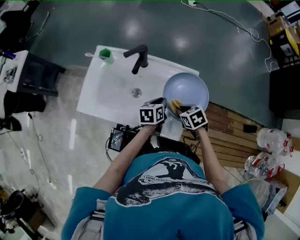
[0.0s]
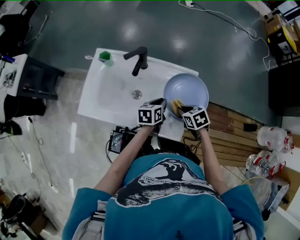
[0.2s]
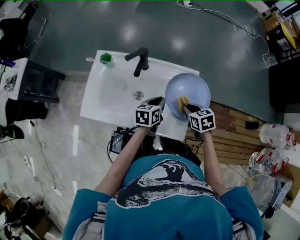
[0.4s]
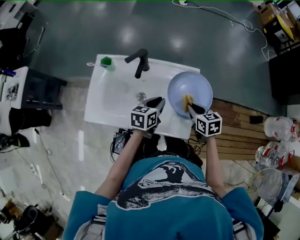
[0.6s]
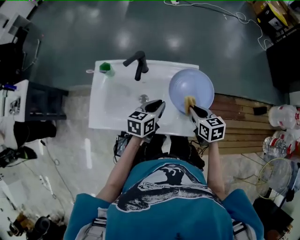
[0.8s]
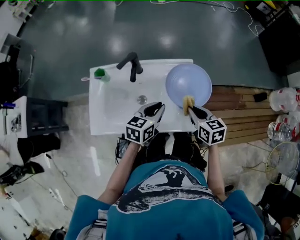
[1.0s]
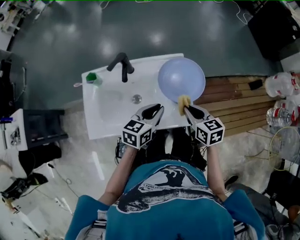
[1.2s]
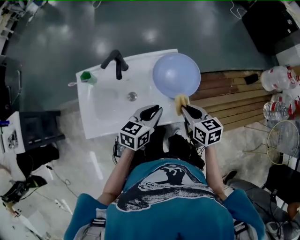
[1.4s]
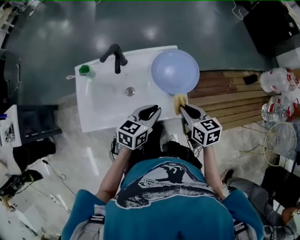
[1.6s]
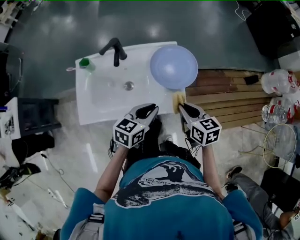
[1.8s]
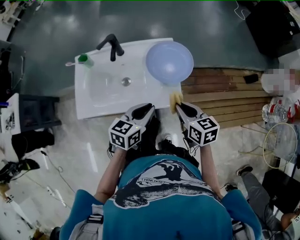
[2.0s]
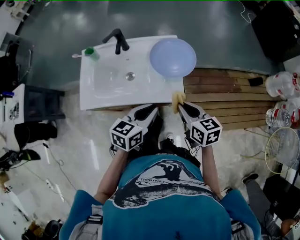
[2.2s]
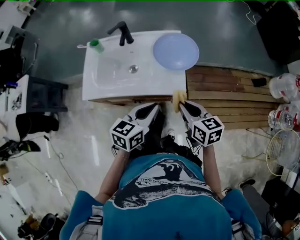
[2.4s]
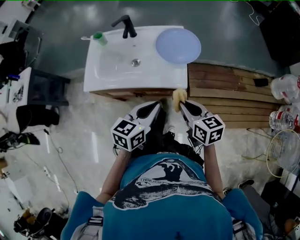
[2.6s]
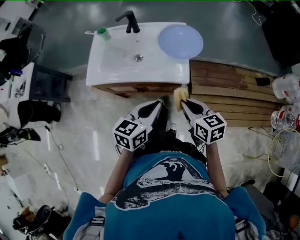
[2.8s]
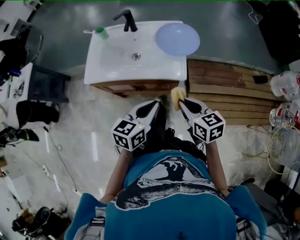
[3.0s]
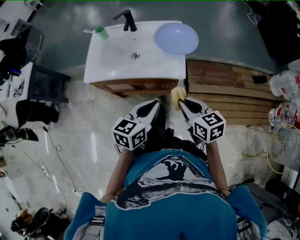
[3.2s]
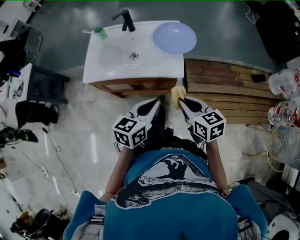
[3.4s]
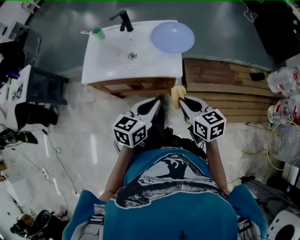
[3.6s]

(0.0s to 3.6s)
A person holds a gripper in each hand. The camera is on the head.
0.0s - 1.8s: The left gripper changes place by roughly 20 cm, and changes its angle by approximately 40 degrees. Meanwhile the right gripper ends up approximately 15 cm from where it was, and changes its angle by roughly 50 degrees.
1.8s - 3.6s: Both grippers travel together backward, approximately 20 cm.

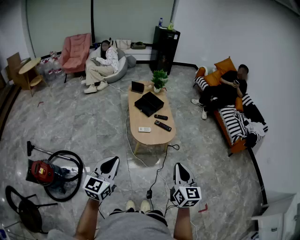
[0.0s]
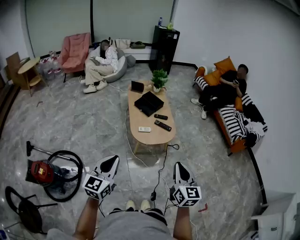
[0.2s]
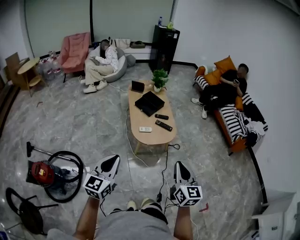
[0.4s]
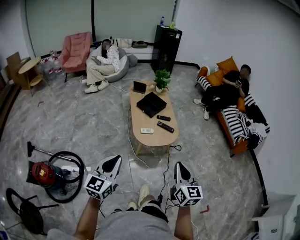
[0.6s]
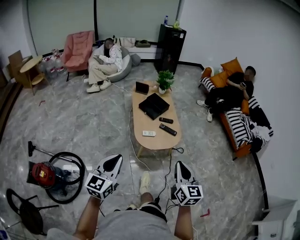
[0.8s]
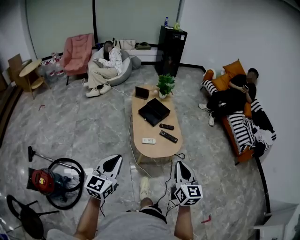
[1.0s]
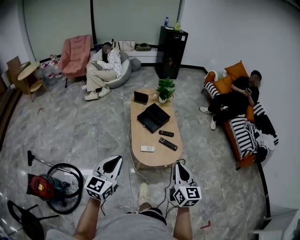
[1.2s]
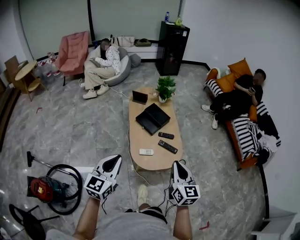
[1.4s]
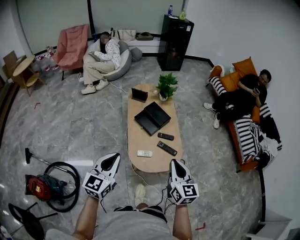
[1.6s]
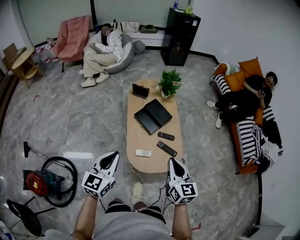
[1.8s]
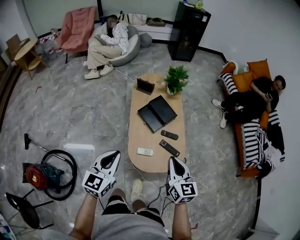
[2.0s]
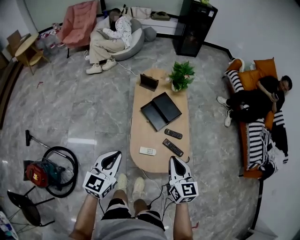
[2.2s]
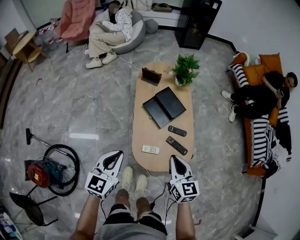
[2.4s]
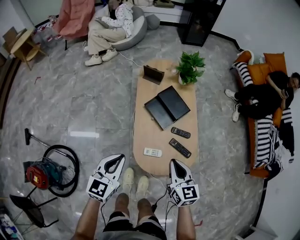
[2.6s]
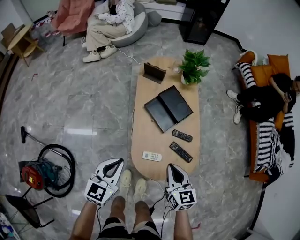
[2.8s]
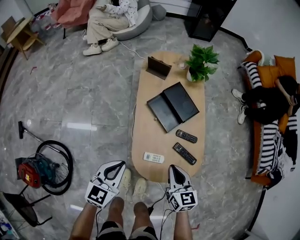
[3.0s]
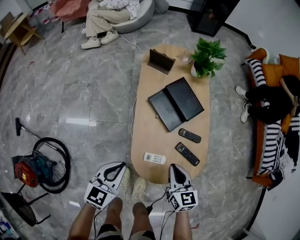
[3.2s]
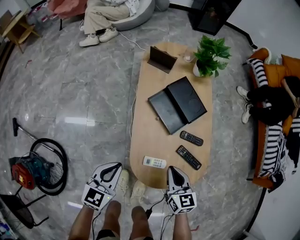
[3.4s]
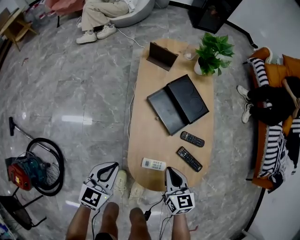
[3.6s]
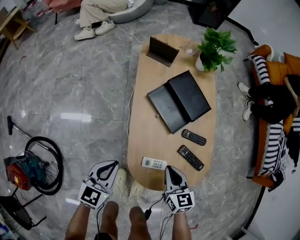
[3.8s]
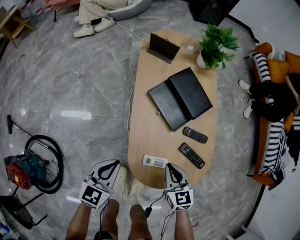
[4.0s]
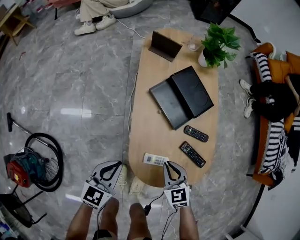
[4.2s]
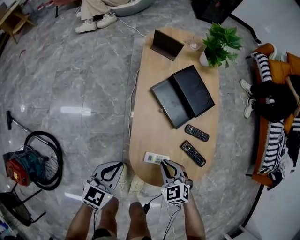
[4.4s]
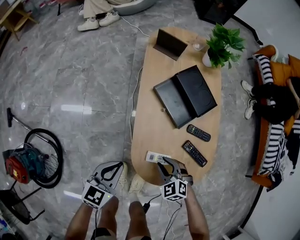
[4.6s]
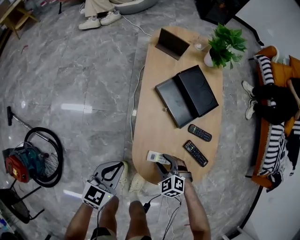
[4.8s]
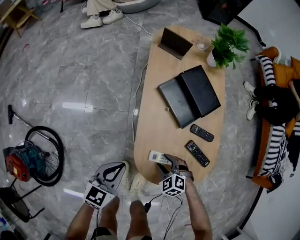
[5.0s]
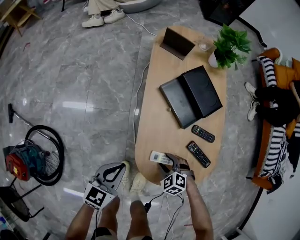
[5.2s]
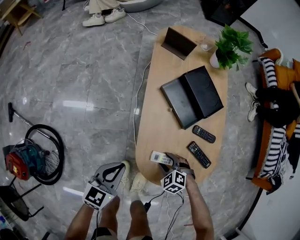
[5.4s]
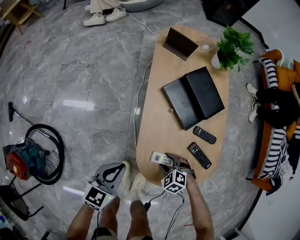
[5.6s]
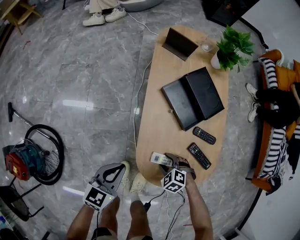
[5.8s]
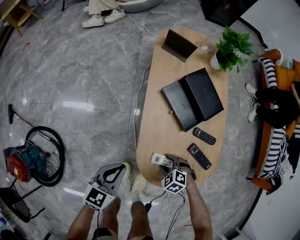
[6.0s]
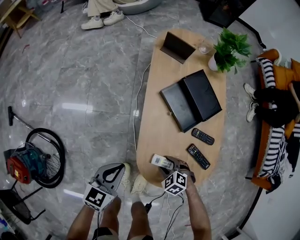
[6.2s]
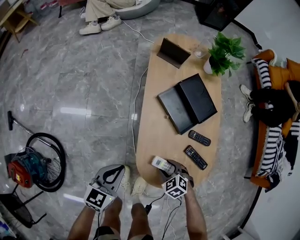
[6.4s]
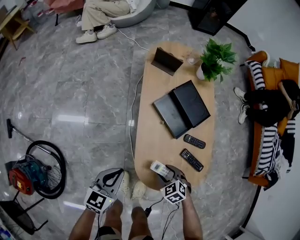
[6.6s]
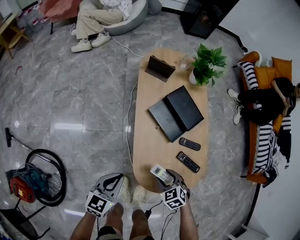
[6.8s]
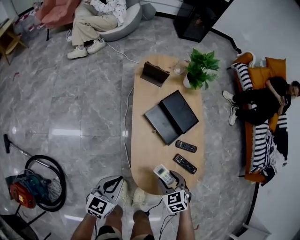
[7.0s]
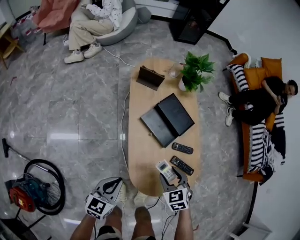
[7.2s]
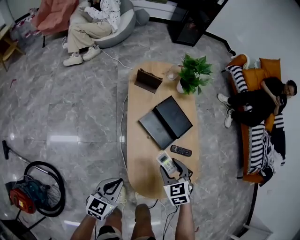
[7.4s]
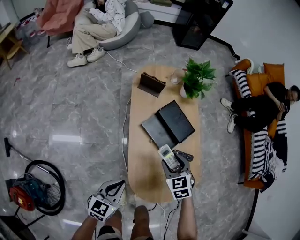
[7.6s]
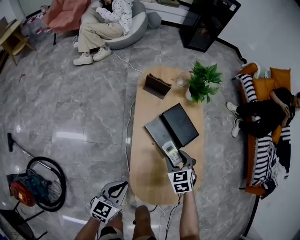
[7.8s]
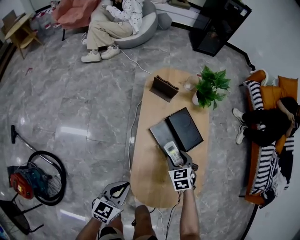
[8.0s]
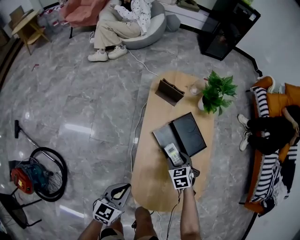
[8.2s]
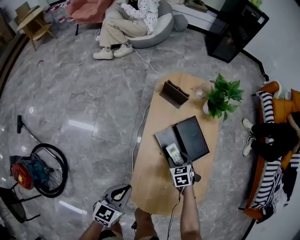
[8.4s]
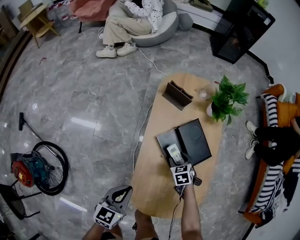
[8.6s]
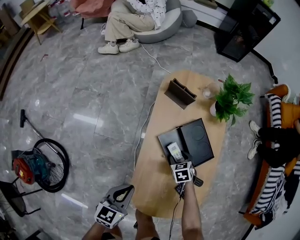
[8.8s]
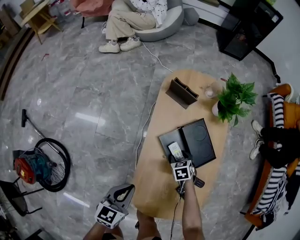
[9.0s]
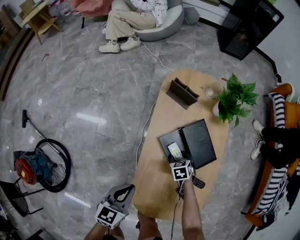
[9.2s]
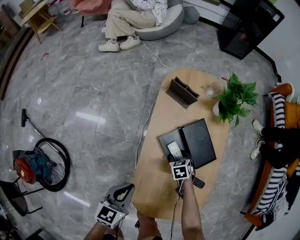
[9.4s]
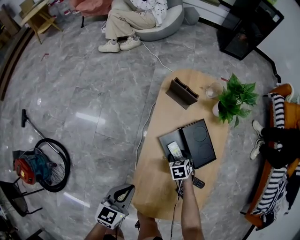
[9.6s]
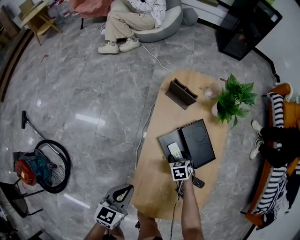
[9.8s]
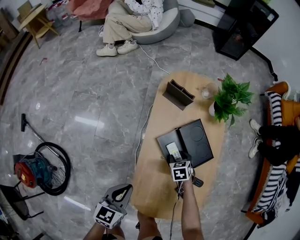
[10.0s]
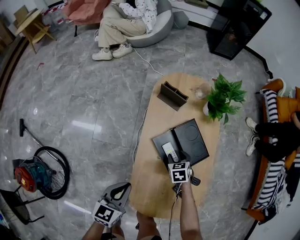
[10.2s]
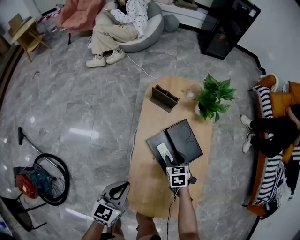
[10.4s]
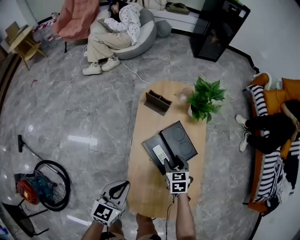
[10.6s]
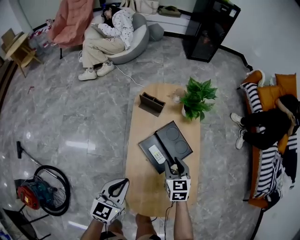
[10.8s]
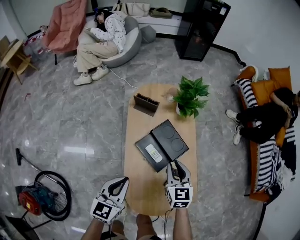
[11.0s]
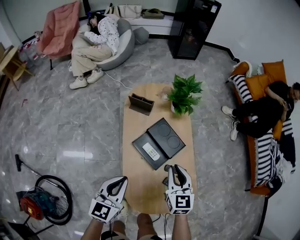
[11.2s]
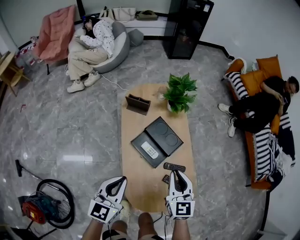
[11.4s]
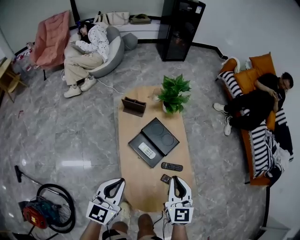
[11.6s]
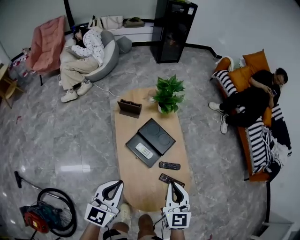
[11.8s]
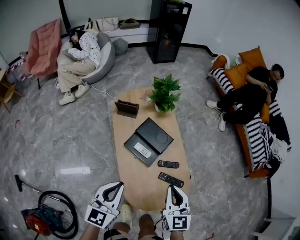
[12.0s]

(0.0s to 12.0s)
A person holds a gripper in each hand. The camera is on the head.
0.0s - 1.6s: Both grippers move forward, some 40 cm.
1.6s - 3.0s: Both grippers move downward and forward, some 30 cm. The right gripper rotates roughly 20 degrees.
3.0s - 4.4s: Both grippers travel together downward, some 15 cm. The right gripper changes its angle by some 40 degrees.
4.4s - 6.0s: The right gripper moves downward, approximately 10 cm, changes its angle by roughly 30 degrees, and opens.
6.0s - 7.6s: The left gripper moves upward, some 10 cm. The right gripper travels upward by roughly 25 cm, and changes its angle by some 50 degrees.
7.6s - 9.0s: The right gripper shifts roughly 25 cm downward and forward, and turns by roughly 20 degrees. The left gripper is displaced forward by some 5 cm, and swivels roughly 20 degrees.
9.0s - 10.4s: The left gripper moves upward, roughly 5 cm; the right gripper goes some 10 cm upward.
10.4s - 12.0s: The right gripper goes some 35 cm upward and backward, angles its fingers upward, by about 40 degrees, and closes its fingers. The left gripper heads upward, covering approximately 15 cm, and rotates some 20 degrees.

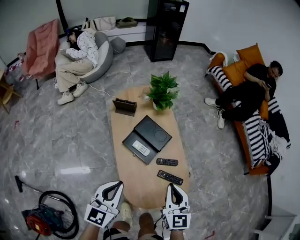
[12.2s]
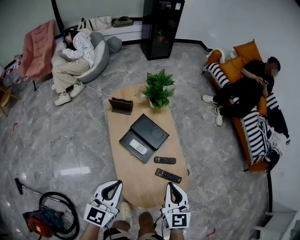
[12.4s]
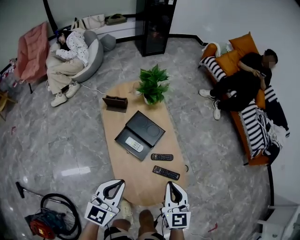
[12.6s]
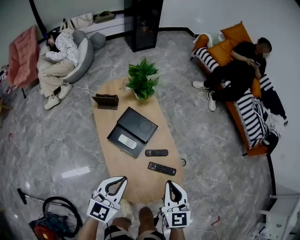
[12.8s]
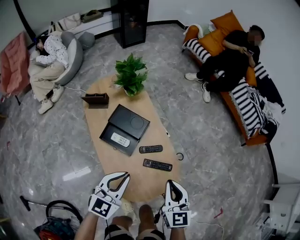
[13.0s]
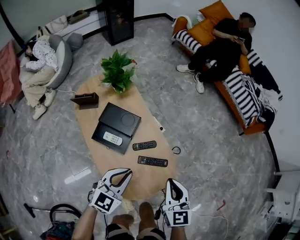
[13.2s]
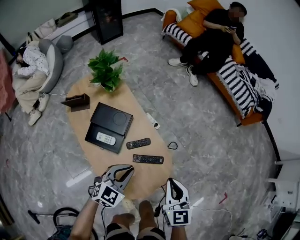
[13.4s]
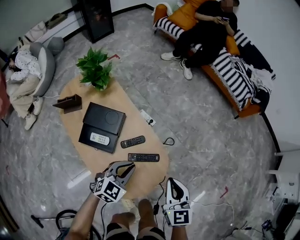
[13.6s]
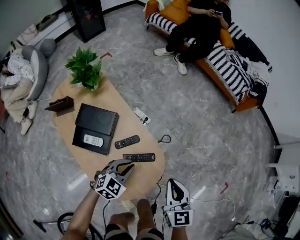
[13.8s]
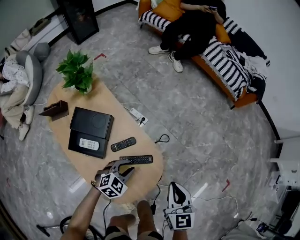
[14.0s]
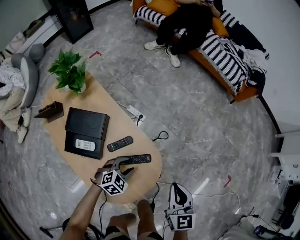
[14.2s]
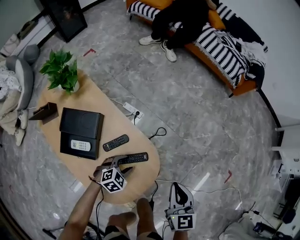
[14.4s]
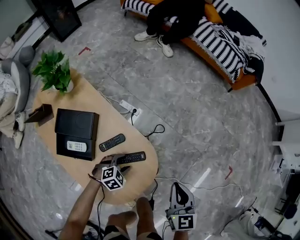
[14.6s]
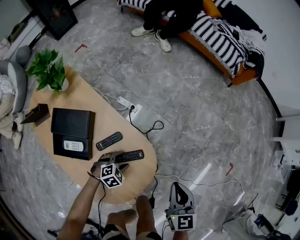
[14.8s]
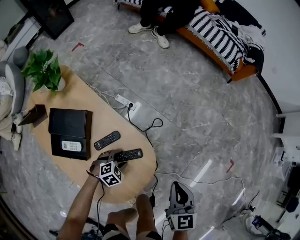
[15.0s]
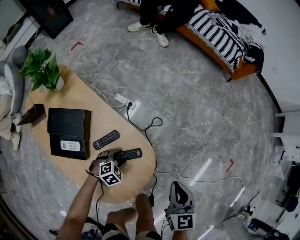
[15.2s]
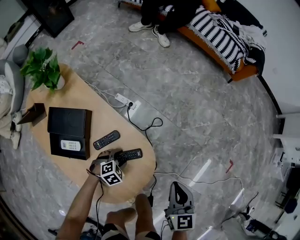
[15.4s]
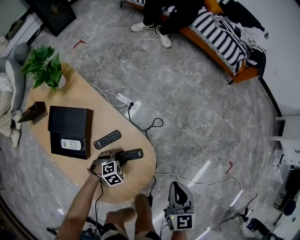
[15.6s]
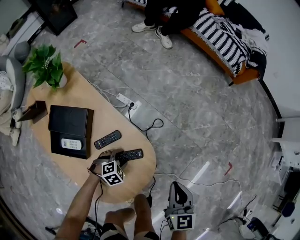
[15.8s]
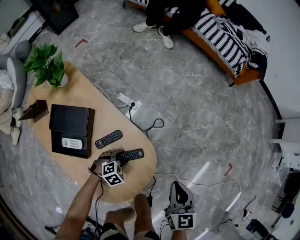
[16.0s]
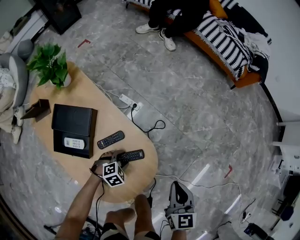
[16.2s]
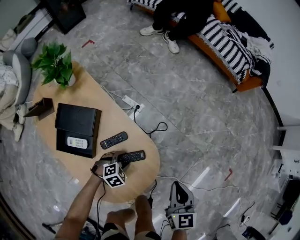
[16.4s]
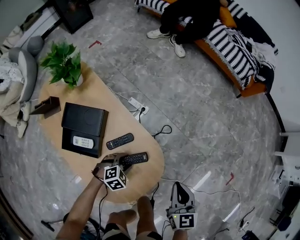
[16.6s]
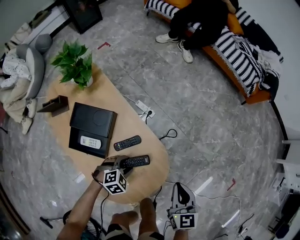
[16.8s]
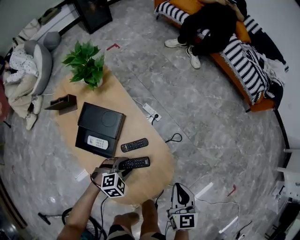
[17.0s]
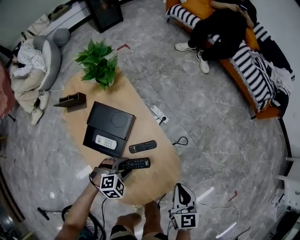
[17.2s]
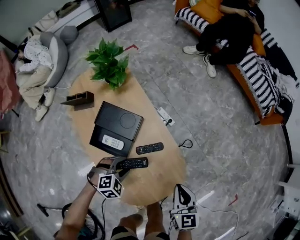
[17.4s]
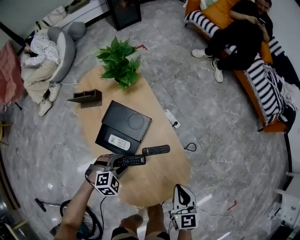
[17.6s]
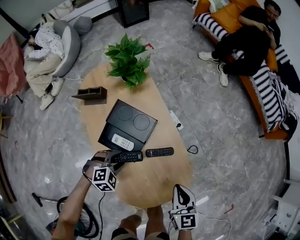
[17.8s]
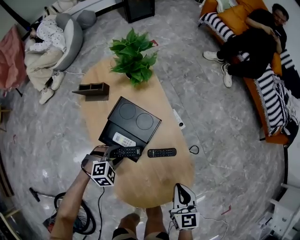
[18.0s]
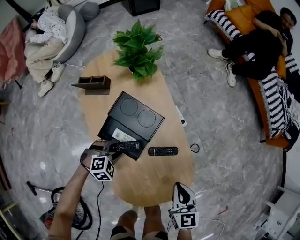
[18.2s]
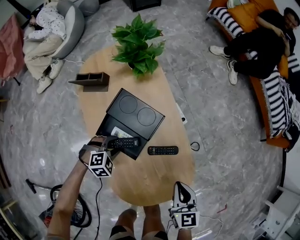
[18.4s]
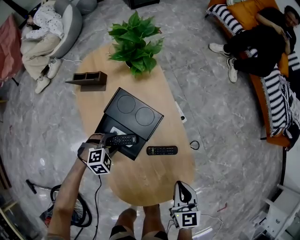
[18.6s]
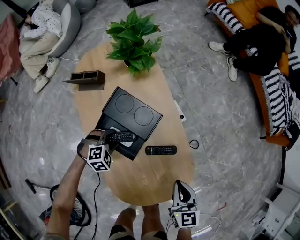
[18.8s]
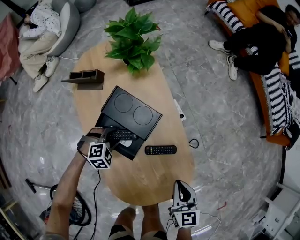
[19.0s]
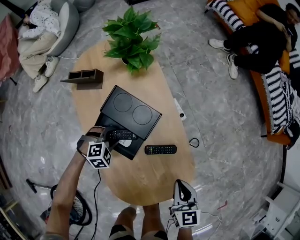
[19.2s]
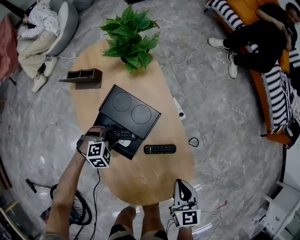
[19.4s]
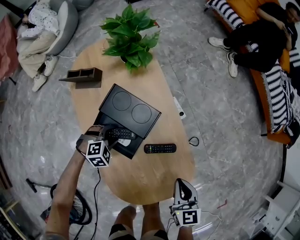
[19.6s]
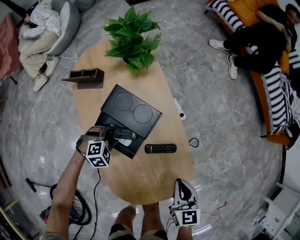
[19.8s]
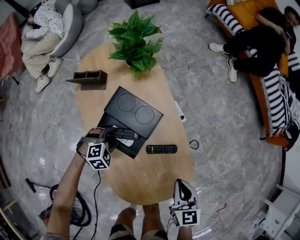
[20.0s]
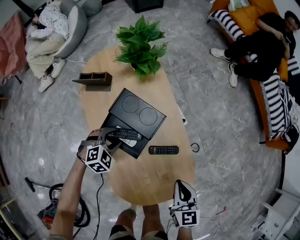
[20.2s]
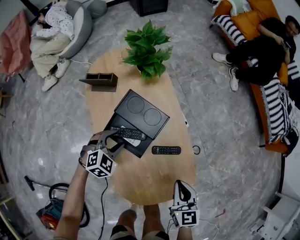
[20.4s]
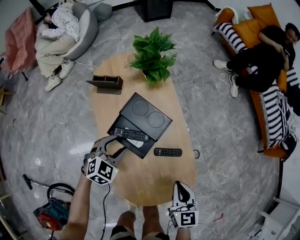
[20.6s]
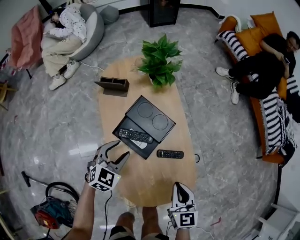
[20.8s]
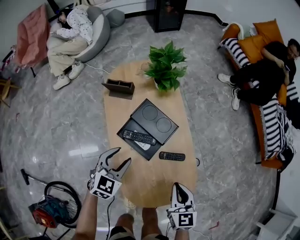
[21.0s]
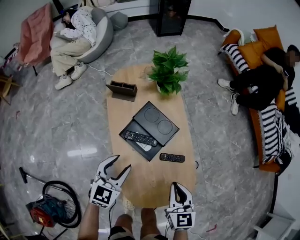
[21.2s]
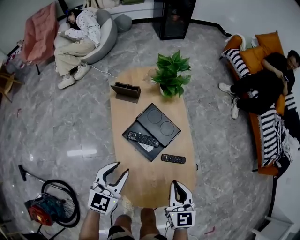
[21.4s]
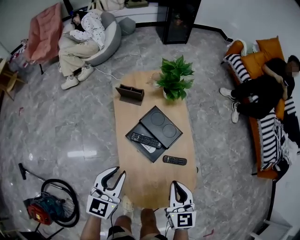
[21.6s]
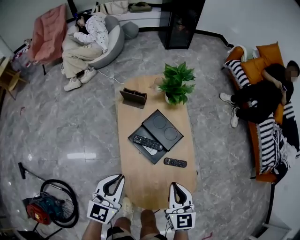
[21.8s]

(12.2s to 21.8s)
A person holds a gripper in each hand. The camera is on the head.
12.2s - 13.8s: The left gripper ends up approximately 35 cm from where it was, and changes its angle by roughly 60 degrees. Meanwhile the right gripper changes place by approximately 25 cm, and turns by about 30 degrees.
13.8s - 15.4s: The left gripper is displaced downward by roughly 20 cm, changes its angle by approximately 30 degrees, and opens; the right gripper moves downward and to the right, roughly 15 cm.
15.4s - 17.0s: The right gripper goes approximately 10 cm to the left, while the left gripper shifts about 15 cm upward and to the left.
17.0s - 18.6s: The left gripper travels to the left by about 25 cm; the right gripper heads to the left and downward, covering some 15 cm.
18.6s - 20.2s: The left gripper is displaced upward by roughly 5 cm.
20.2s - 21.8s: The left gripper is displaced upward and backward by some 30 cm, tilts its fingers roughly 40 degrees upward, and closes its fingers; the right gripper goes about 20 cm upward and to the left.
